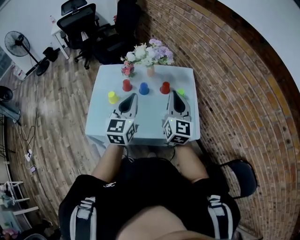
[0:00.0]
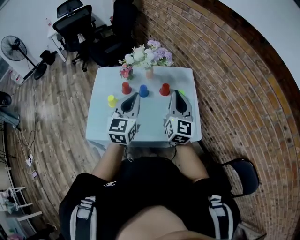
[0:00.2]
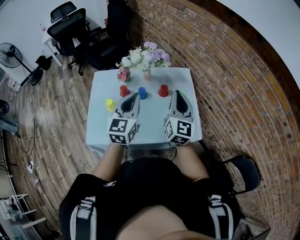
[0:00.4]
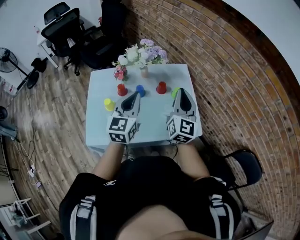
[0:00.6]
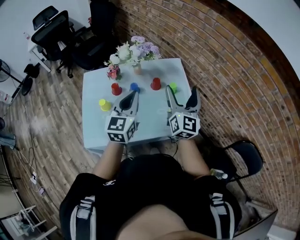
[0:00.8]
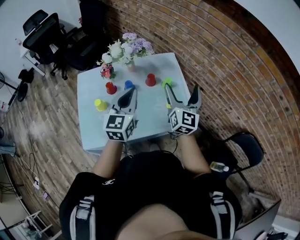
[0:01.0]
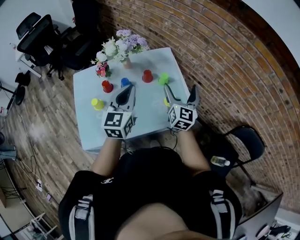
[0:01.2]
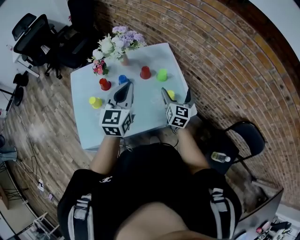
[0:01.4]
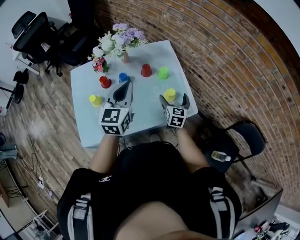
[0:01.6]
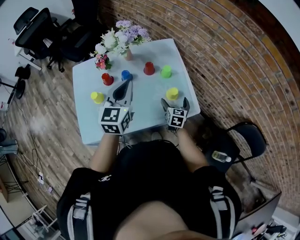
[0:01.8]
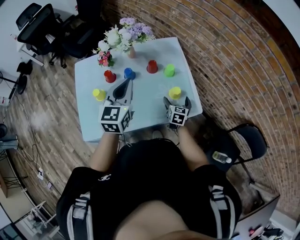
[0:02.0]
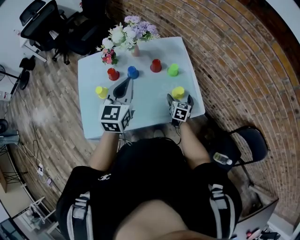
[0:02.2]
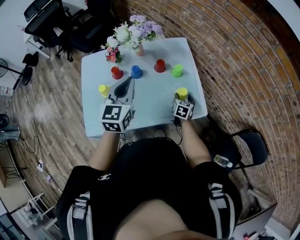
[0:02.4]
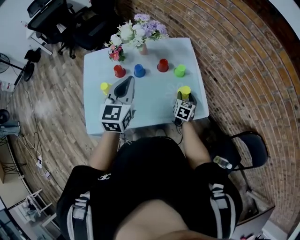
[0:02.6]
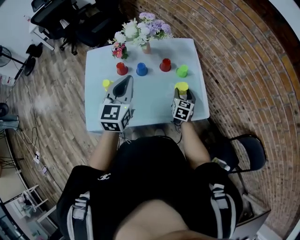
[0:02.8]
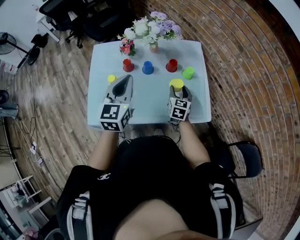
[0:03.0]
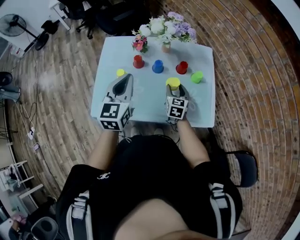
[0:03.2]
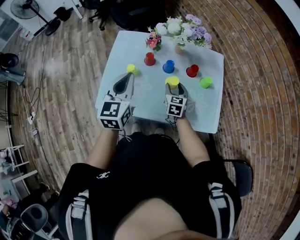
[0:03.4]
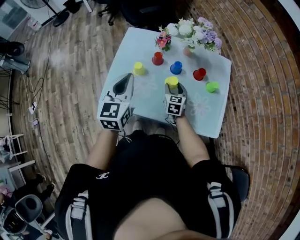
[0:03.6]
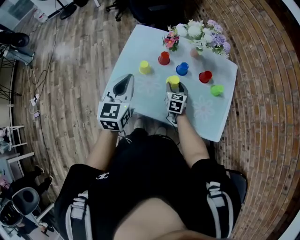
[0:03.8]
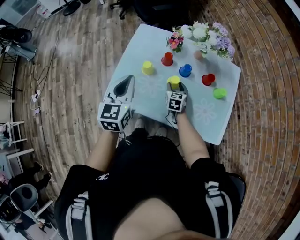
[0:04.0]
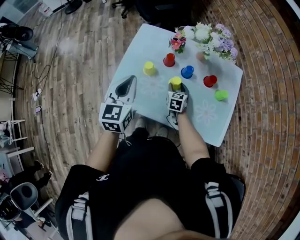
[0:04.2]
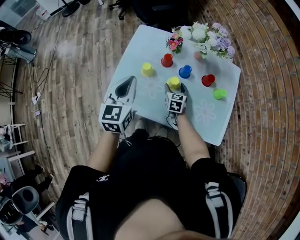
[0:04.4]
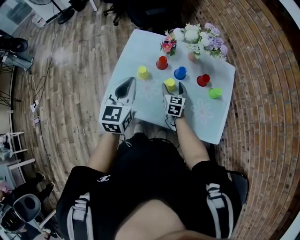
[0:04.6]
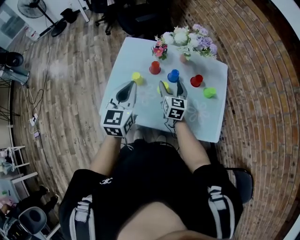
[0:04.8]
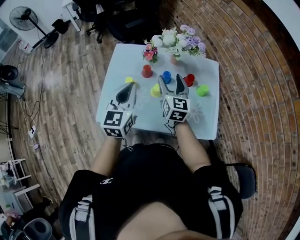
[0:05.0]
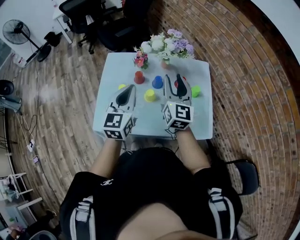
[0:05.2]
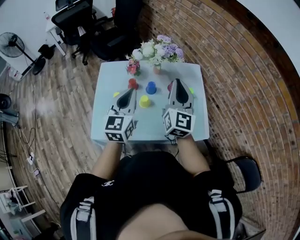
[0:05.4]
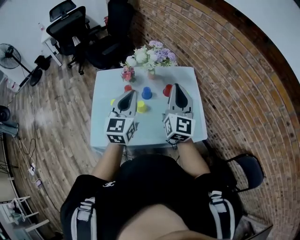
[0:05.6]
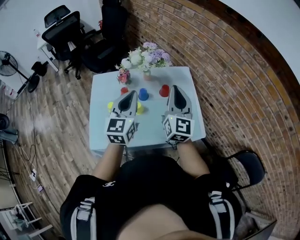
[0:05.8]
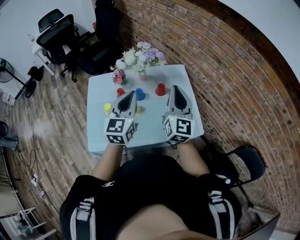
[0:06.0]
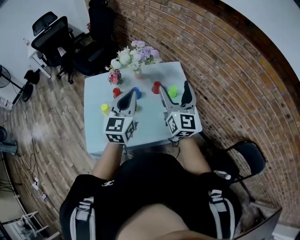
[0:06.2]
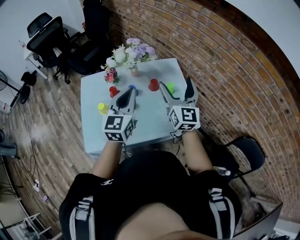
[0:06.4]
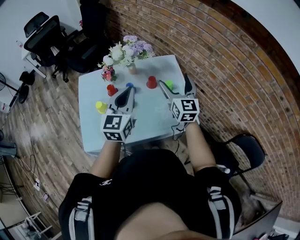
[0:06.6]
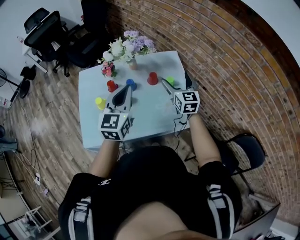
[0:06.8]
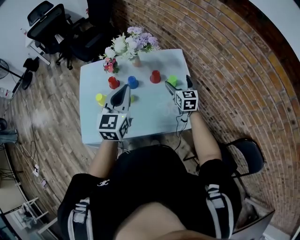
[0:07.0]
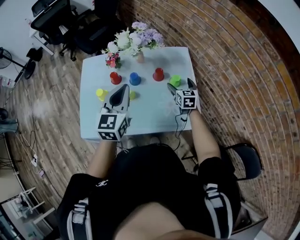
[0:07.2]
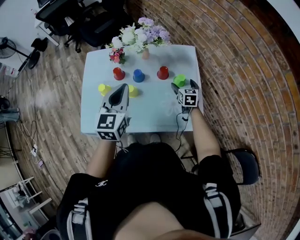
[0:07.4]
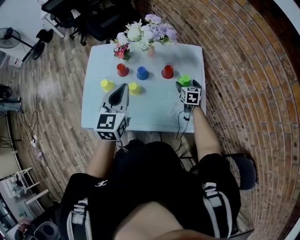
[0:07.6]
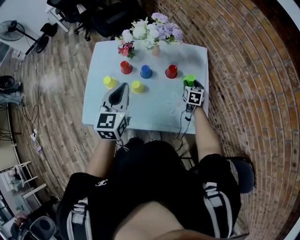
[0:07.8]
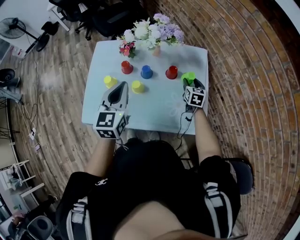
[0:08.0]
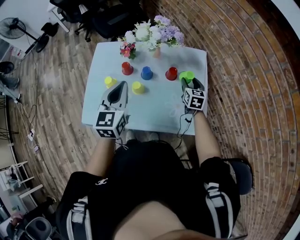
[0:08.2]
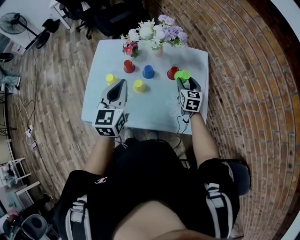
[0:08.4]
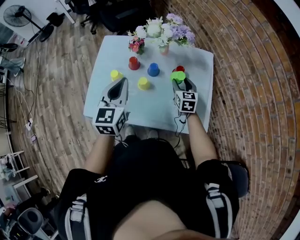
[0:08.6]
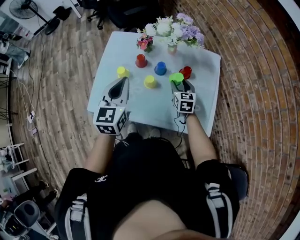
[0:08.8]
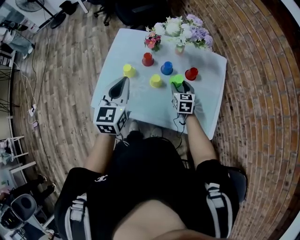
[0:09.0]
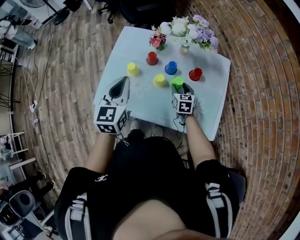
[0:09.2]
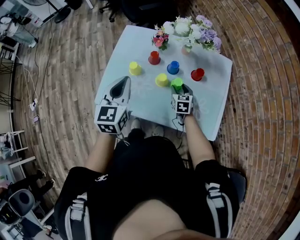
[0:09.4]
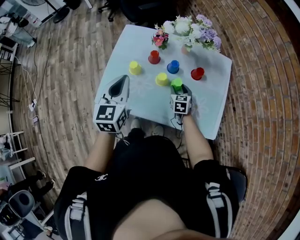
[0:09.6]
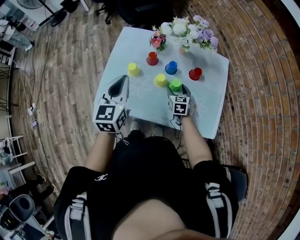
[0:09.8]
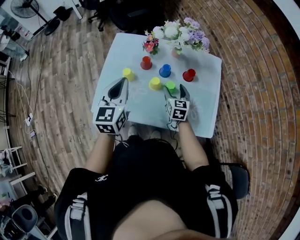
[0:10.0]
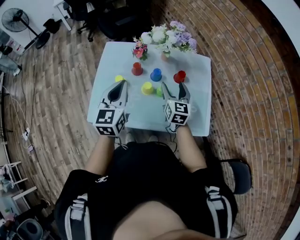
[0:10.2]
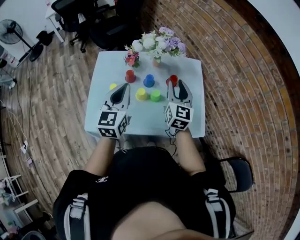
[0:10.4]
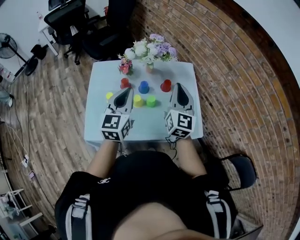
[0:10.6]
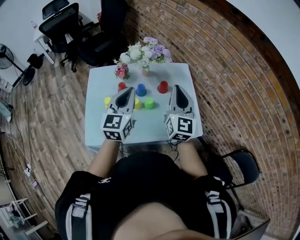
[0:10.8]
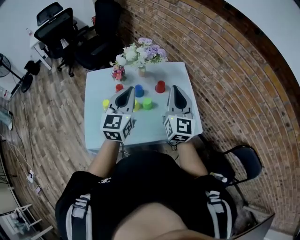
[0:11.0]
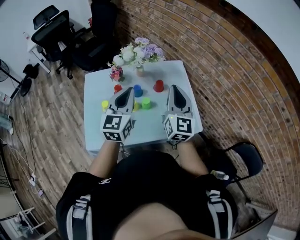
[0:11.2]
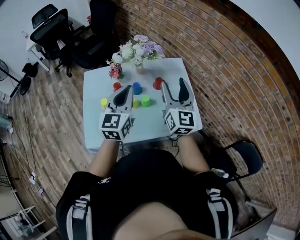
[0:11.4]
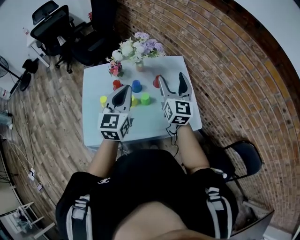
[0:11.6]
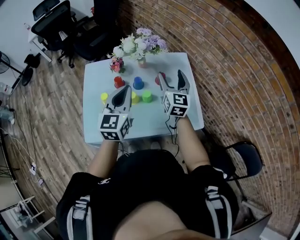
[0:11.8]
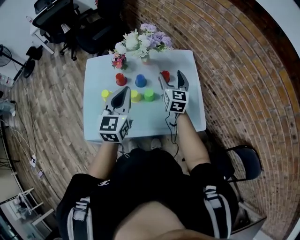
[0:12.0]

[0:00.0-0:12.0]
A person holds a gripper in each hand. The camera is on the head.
0:00.0 to 0:01.6: The left gripper moves forward, about 10 cm. The right gripper moves downward, about 25 cm, turns by about 30 degrees, and opens.
0:01.6 to 0:03.0: Both grippers travel together to the left, roughly 10 cm. The right gripper closes its fingers.
0:03.0 to 0:04.4: The left gripper moves to the left, about 15 cm, while the right gripper moves to the left and downward, some 20 cm, and rotates roughly 30 degrees.
0:04.4 to 0:06.0: The right gripper moves upward, approximately 35 cm, tilts its fingers roughly 50 degrees upward, and closes. The left gripper shifts by approximately 20 cm, and turns by roughly 30 degrees.
0:06.0 to 0:07.6: The left gripper goes roughly 5 cm downward. The right gripper shifts about 40 cm downward and forward, angles its fingers downward, by roughly 50 degrees, and opens its fingers.
0:07.6 to 0:09.0: The right gripper heads to the left, covering some 20 cm, and closes up; the left gripper is displaced to the left by some 10 cm.
0:09.0 to 0:10.4: The left gripper shifts by approximately 5 cm. Meanwhile the right gripper shifts roughly 20 cm upward, and changes its angle by approximately 40 degrees.
0:10.4 to 0:12.0: The right gripper heads forward and downward, covering approximately 10 cm; the left gripper is displaced to the right by about 5 cm.

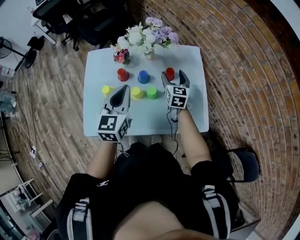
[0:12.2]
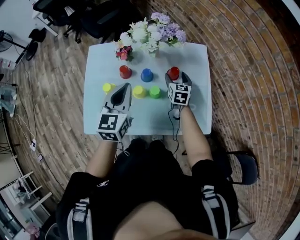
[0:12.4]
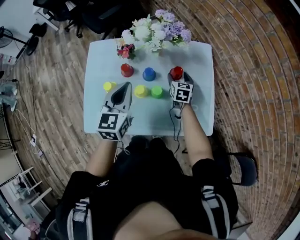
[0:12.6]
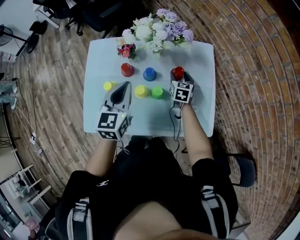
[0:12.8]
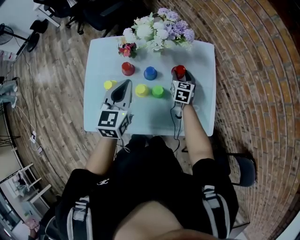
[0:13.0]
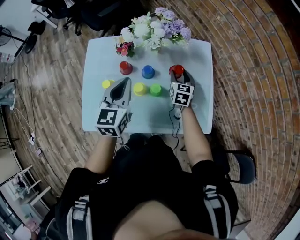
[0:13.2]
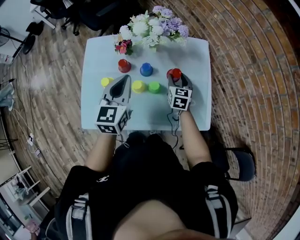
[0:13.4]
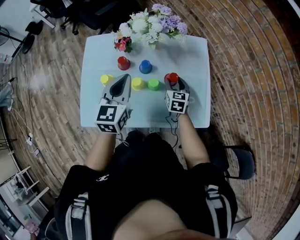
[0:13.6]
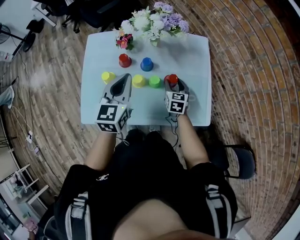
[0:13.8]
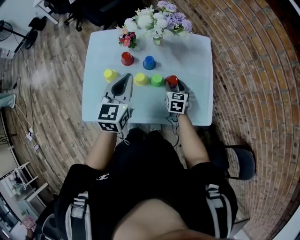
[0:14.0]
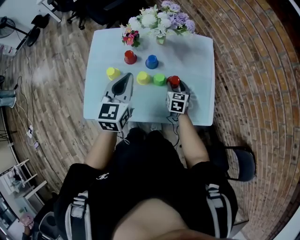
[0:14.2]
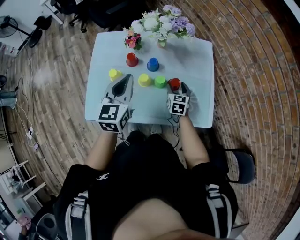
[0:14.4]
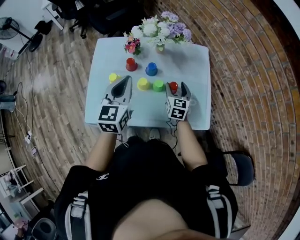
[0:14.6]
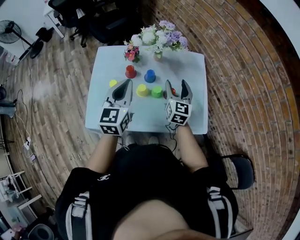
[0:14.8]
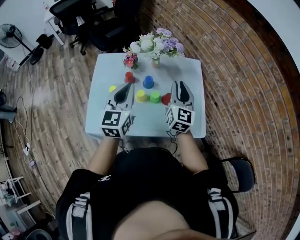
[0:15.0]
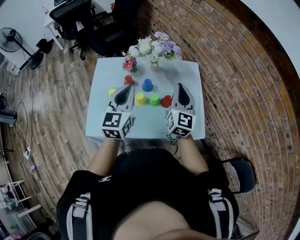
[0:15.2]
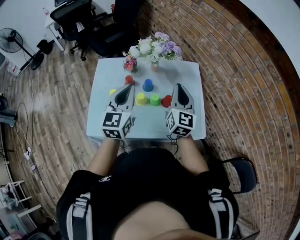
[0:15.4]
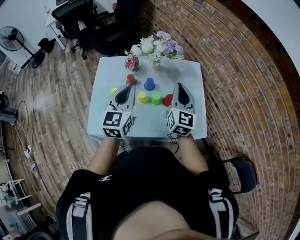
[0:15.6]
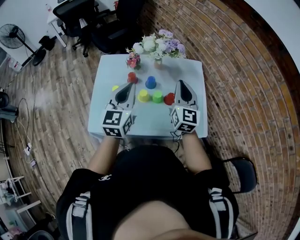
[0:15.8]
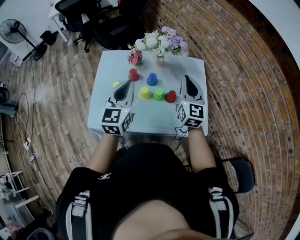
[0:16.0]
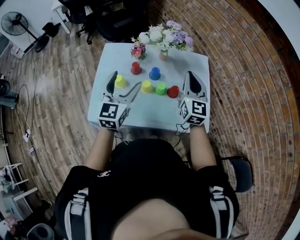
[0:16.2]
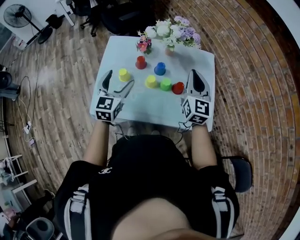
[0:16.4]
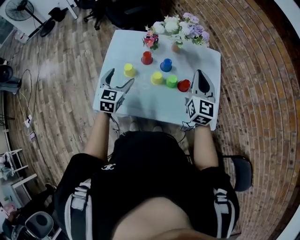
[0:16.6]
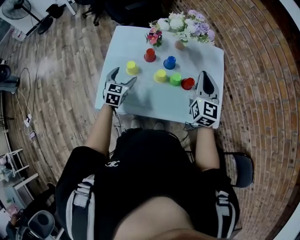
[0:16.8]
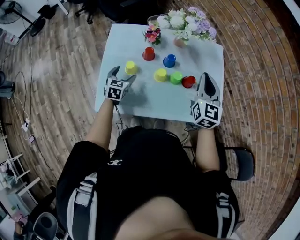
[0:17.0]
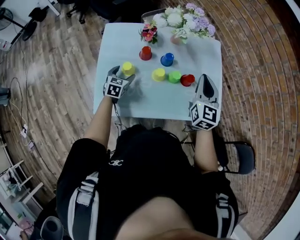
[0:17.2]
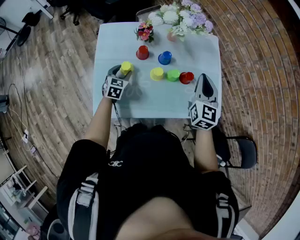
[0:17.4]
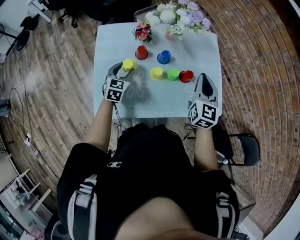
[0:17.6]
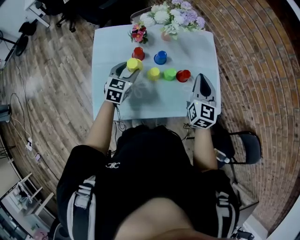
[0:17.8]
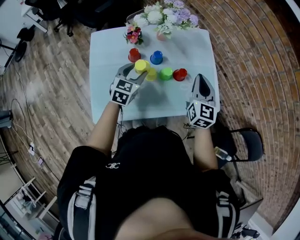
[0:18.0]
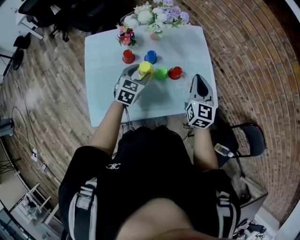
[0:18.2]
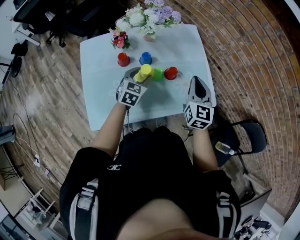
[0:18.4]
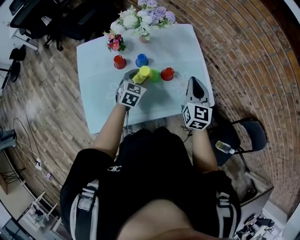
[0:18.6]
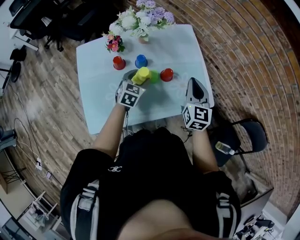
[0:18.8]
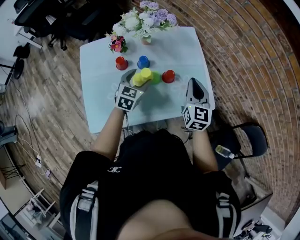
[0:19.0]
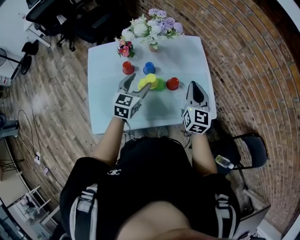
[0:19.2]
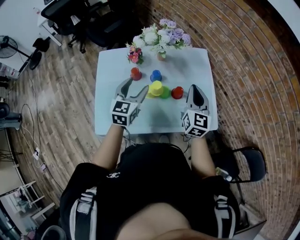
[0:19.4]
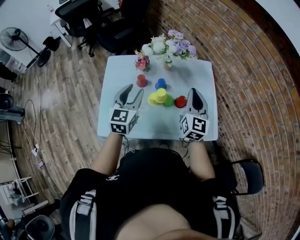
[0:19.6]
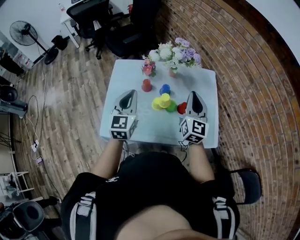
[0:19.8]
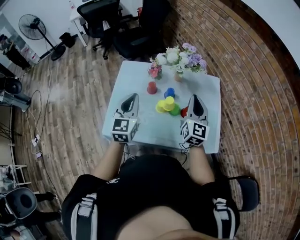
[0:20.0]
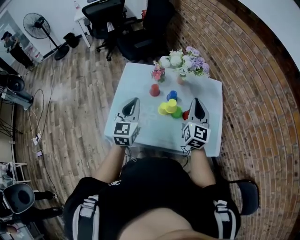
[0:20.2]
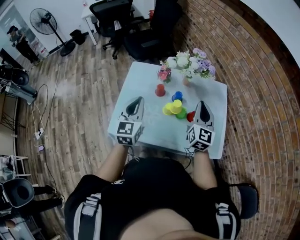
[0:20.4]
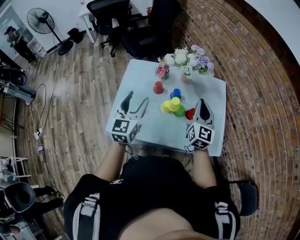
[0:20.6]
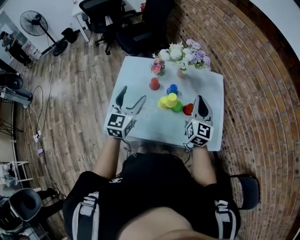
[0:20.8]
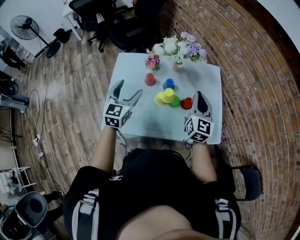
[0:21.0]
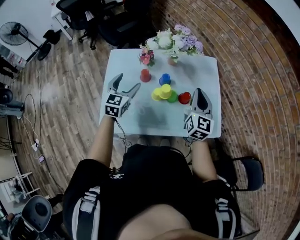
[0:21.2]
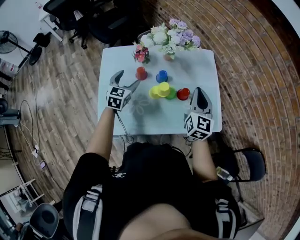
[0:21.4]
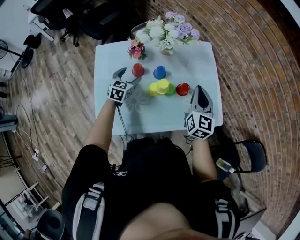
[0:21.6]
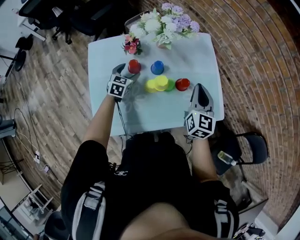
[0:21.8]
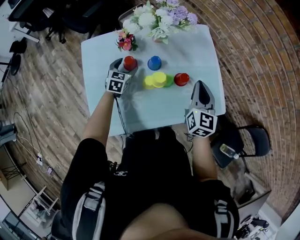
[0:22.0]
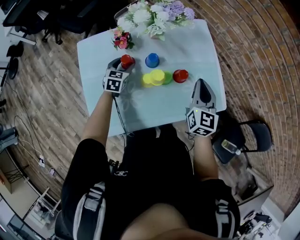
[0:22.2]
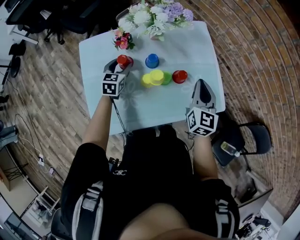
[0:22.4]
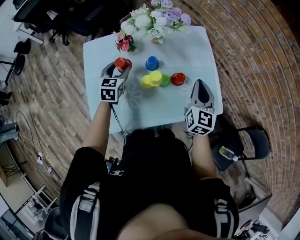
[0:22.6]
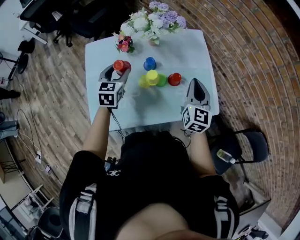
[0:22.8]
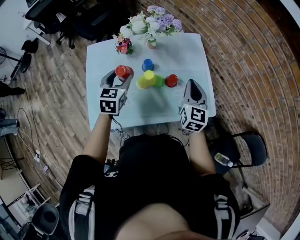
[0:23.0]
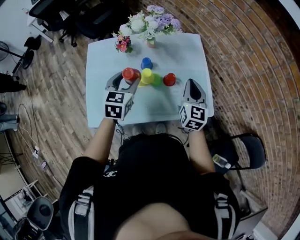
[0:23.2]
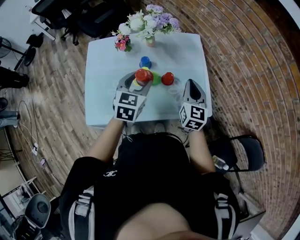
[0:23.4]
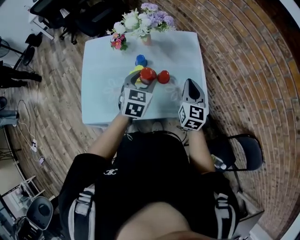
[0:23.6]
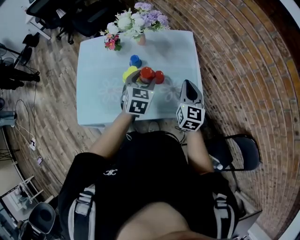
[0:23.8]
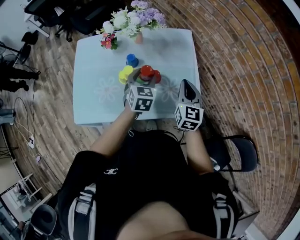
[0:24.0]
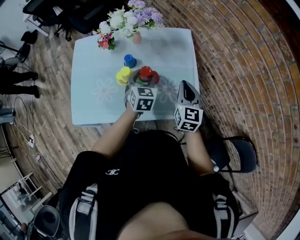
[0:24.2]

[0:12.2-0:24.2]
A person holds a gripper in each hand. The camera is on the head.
0:12.2 to 0:13.8: The right gripper is displaced downward and backward by about 10 cm.
0:13.8 to 0:15.2: The left gripper heads upward, covering roughly 10 cm, while the right gripper shifts about 25 cm upward, angles its fingers upward, by roughly 40 degrees, and closes up.
0:15.2 to 0:16.6: The left gripper travels downward and to the left by about 20 cm, changes its angle by some 20 degrees, and opens its fingers.
0:16.6 to 0:18.2: The right gripper shifts roughly 5 cm downward; the left gripper shifts approximately 15 cm to the right and forward, rotates approximately 30 degrees, and closes its fingers.
0:18.2 to 0:19.8: The left gripper goes about 20 cm upward and backward, turns by some 40 degrees, and closes its fingers; the right gripper goes approximately 5 cm upward.
0:19.8 to 0:21.2: The left gripper is displaced downward and forward by approximately 10 cm, and opens up.
0:21.2 to 0:22.6: The left gripper is displaced downward and forward by about 10 cm. The right gripper moves downward, some 5 cm.
0:22.6 to 0:24.2: The left gripper heads to the right, covering some 25 cm. Meanwhile the right gripper heads to the right, covering about 10 cm.
